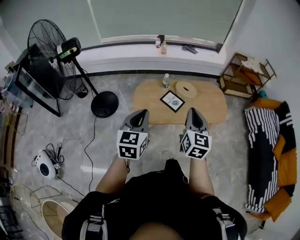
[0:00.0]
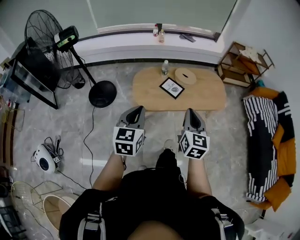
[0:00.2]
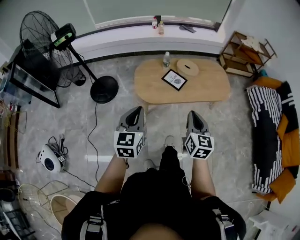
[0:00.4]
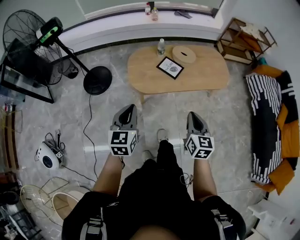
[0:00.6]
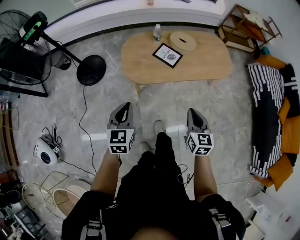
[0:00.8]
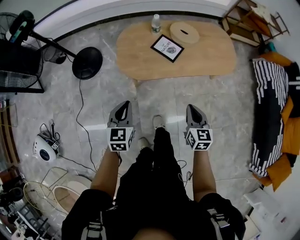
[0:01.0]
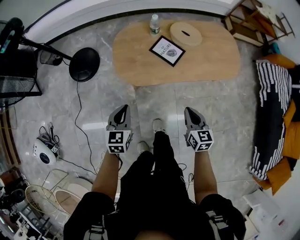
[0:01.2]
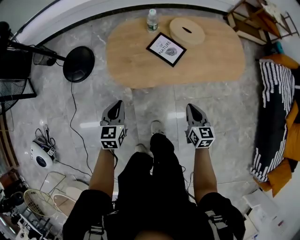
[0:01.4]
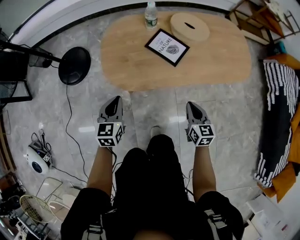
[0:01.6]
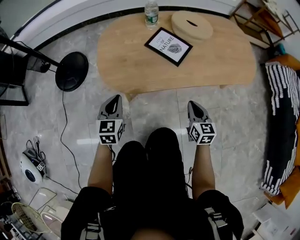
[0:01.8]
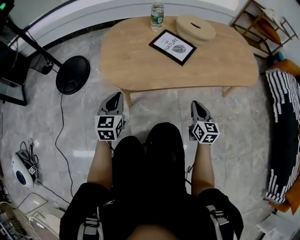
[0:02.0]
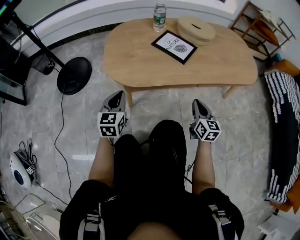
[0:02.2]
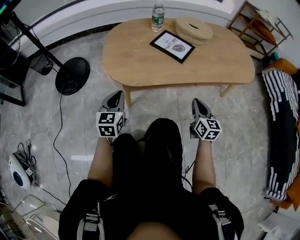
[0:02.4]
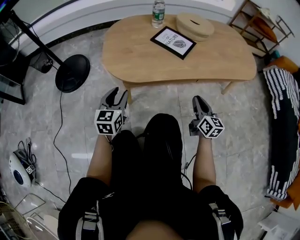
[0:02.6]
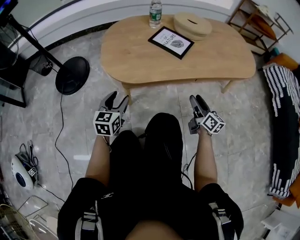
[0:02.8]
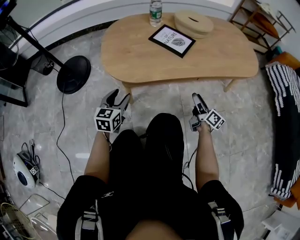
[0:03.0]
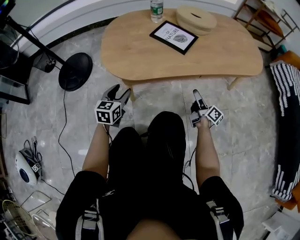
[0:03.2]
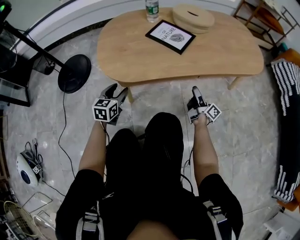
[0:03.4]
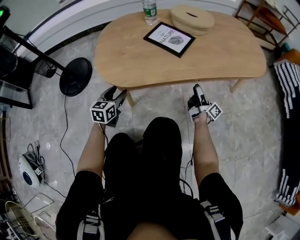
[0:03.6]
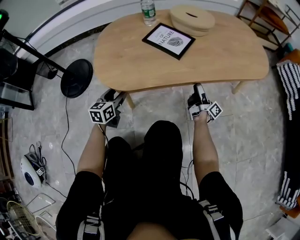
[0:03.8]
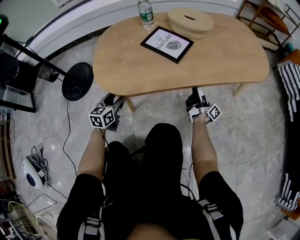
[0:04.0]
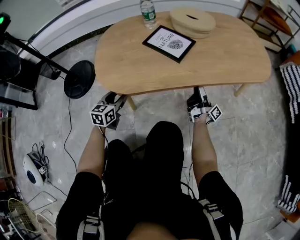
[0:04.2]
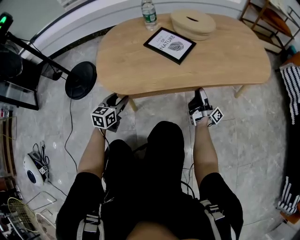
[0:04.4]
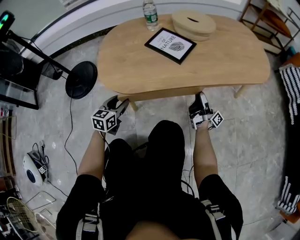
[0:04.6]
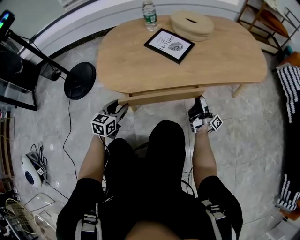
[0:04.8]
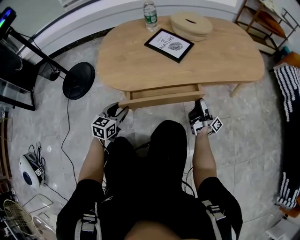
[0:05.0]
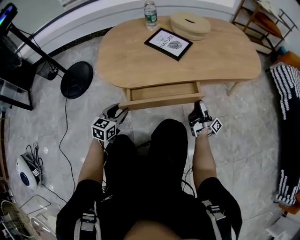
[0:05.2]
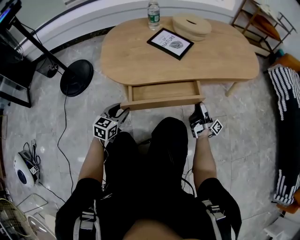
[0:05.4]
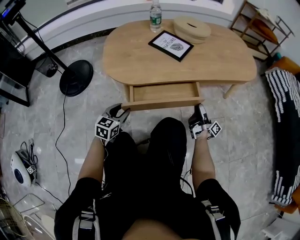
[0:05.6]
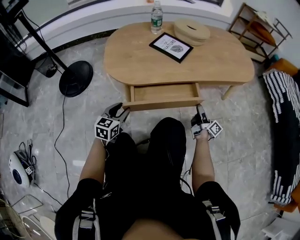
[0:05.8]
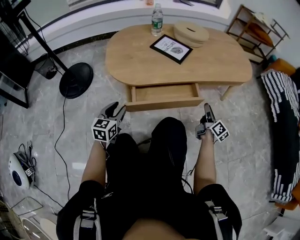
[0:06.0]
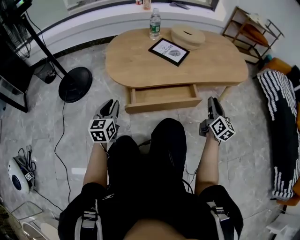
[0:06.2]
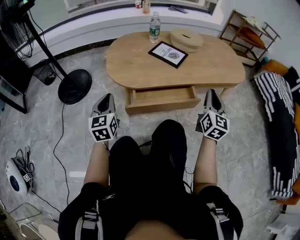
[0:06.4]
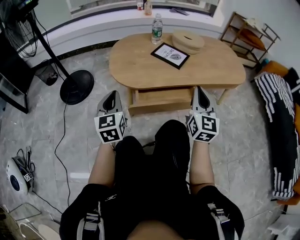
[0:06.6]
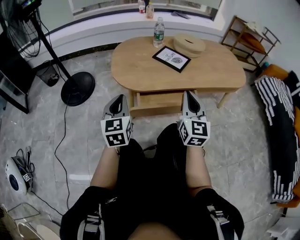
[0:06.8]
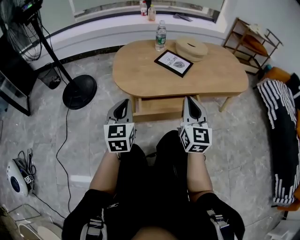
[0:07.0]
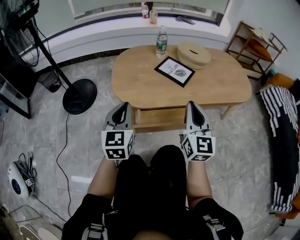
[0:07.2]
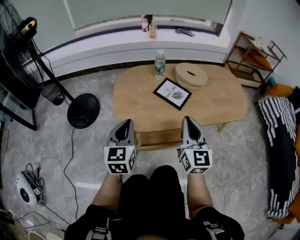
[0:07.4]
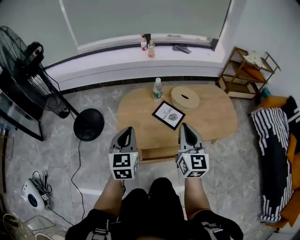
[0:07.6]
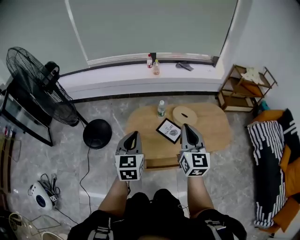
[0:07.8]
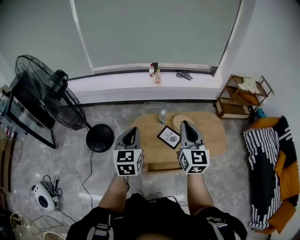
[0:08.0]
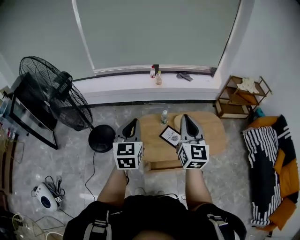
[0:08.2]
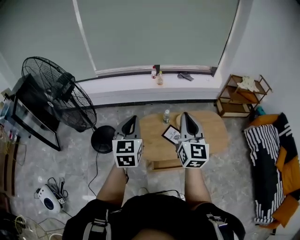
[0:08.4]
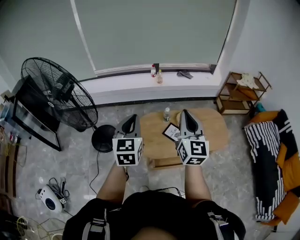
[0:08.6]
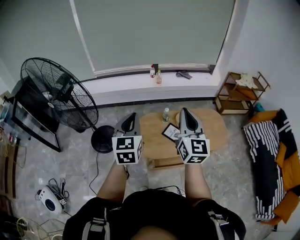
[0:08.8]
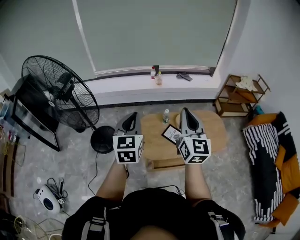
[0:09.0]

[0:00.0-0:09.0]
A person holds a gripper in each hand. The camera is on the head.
0.0 to 1.6 s: Both grippers travel together downward, some 50 cm. The right gripper changes its angle by roughly 30 degrees.
1.6 to 3.0 s: The two grippers go about 20 cm downward. The right gripper swivels roughly 50 degrees, and opens up. The left gripper opens its fingers.
3.0 to 4.4 s: The grippers both shift forward and downward by approximately 10 cm. The right gripper changes its angle by approximately 50 degrees.
4.4 to 6.0 s: The grippers both shift backward and upward by some 15 cm. The right gripper rolls counterclockwise, seen from behind, by about 40 degrees.
6.0 to 7.6 s: The left gripper moves upward, approximately 40 cm, and closes its fingers, while the right gripper is displaced upward and to the left by some 50 cm, twists roughly 50 degrees counterclockwise, seen from behind, and closes.
7.6 to 9.0 s: Both grippers move upward, about 40 cm.

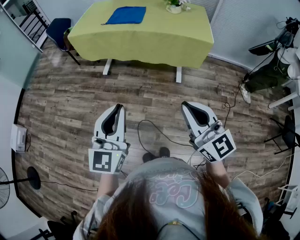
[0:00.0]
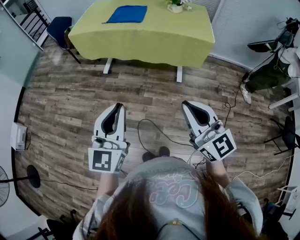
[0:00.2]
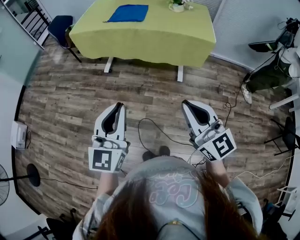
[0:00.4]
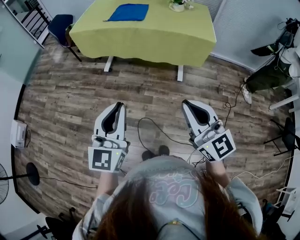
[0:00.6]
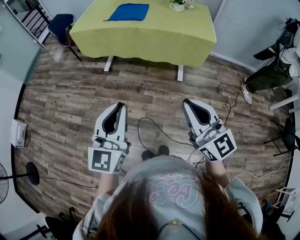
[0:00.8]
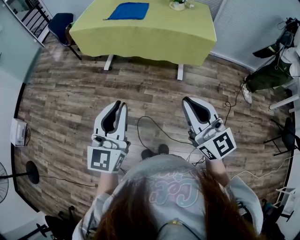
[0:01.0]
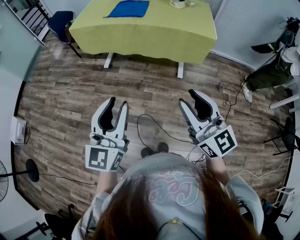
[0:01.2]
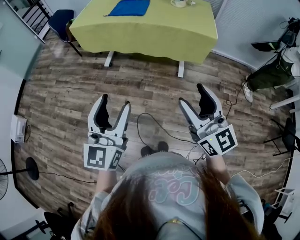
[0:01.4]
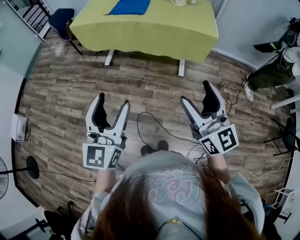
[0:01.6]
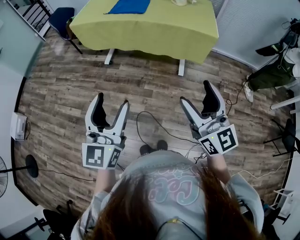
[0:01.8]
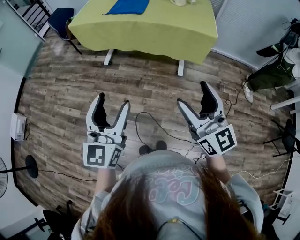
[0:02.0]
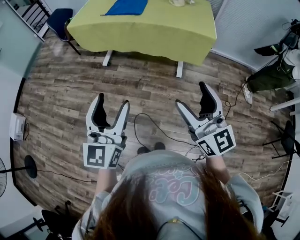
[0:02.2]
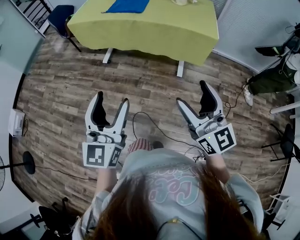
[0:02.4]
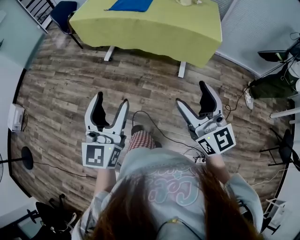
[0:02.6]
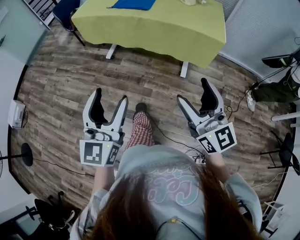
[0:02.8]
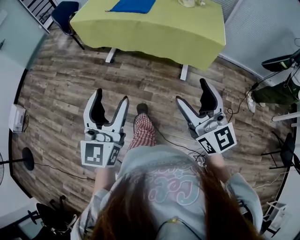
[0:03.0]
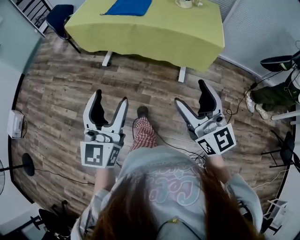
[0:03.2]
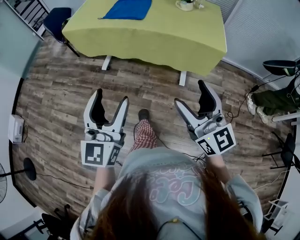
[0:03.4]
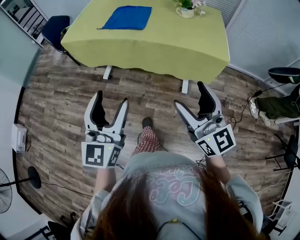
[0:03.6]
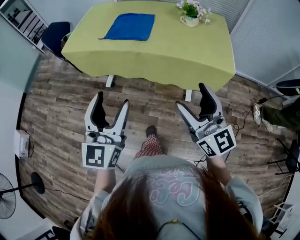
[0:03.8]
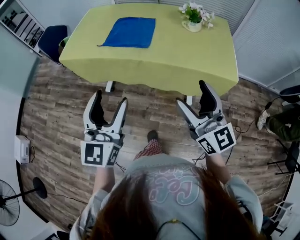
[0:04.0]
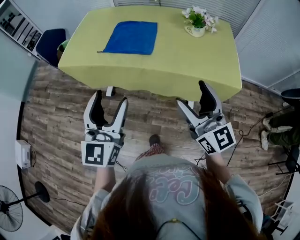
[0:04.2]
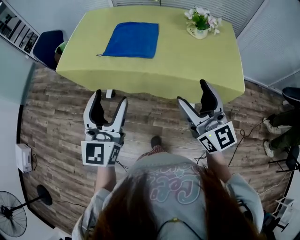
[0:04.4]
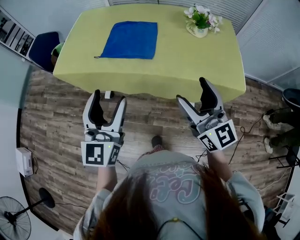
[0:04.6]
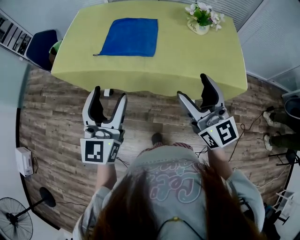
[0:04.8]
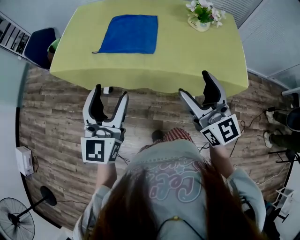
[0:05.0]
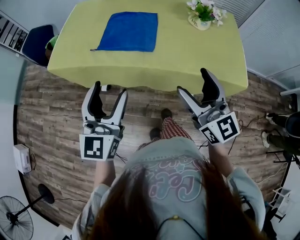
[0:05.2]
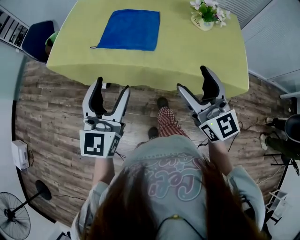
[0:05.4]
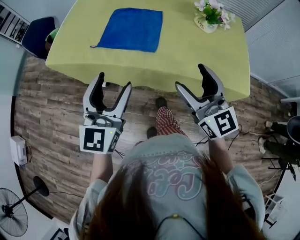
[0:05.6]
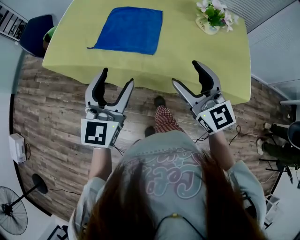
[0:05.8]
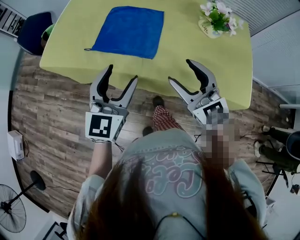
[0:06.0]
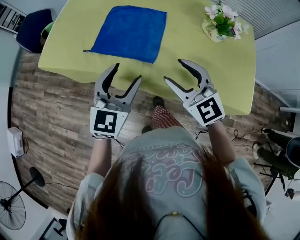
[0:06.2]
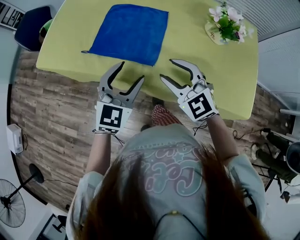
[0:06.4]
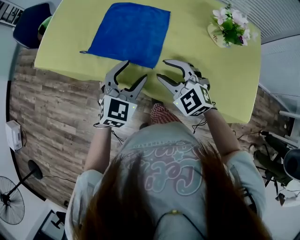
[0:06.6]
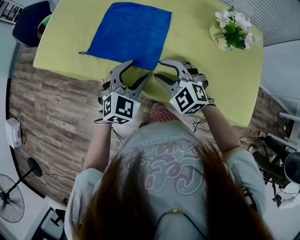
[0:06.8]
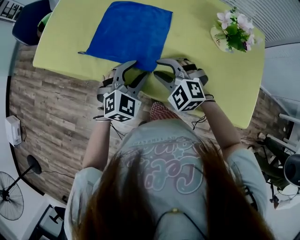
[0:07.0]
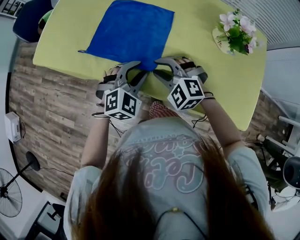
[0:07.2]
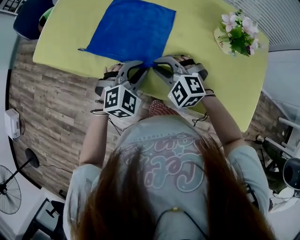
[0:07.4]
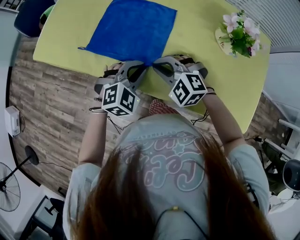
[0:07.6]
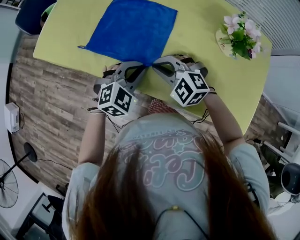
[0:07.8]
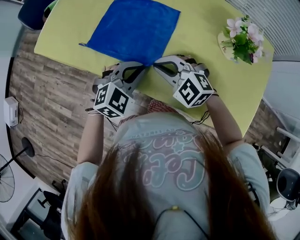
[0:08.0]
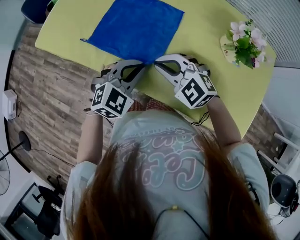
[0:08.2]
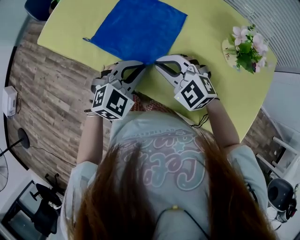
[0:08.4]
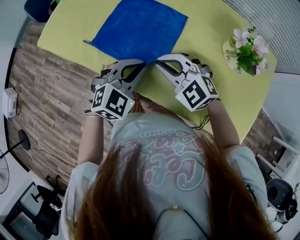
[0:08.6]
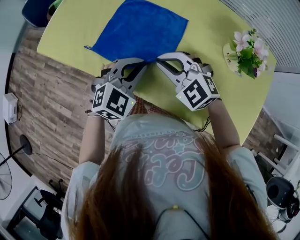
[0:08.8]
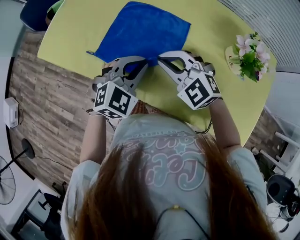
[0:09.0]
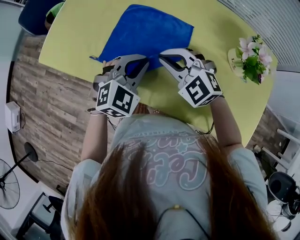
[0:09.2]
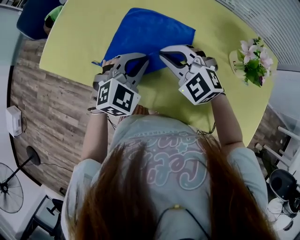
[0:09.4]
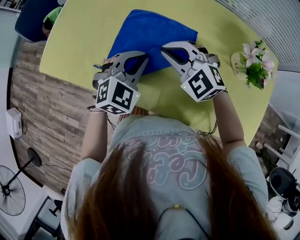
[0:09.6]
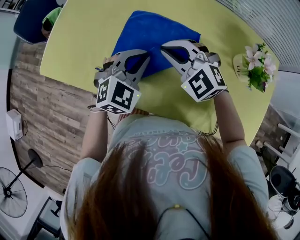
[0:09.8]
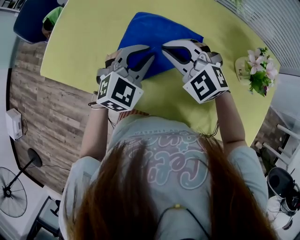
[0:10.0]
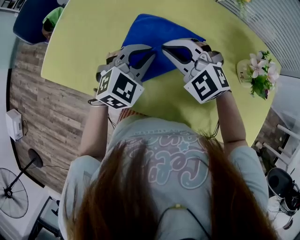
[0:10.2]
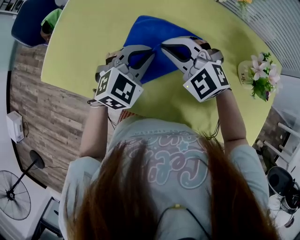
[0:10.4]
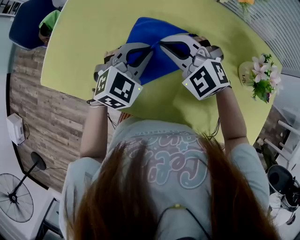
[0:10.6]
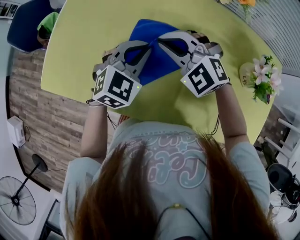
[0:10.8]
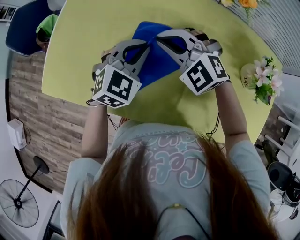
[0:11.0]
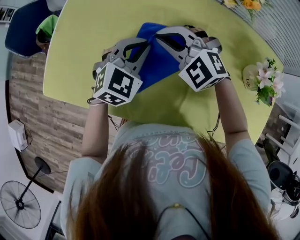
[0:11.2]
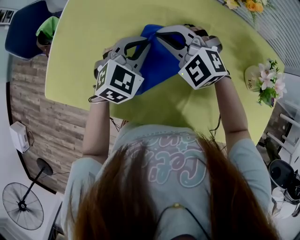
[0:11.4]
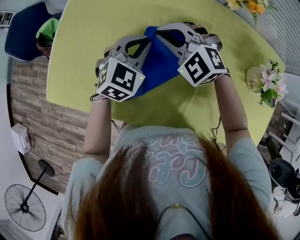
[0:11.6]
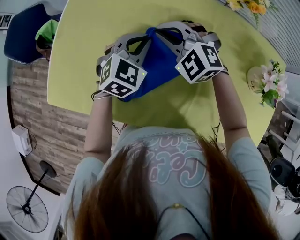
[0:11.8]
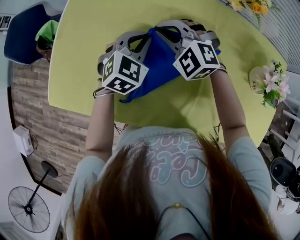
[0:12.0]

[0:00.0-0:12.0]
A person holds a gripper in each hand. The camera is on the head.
0.0 to 1.6 s: The left gripper opens up. Meanwhile the right gripper opens up.
1.6 to 3.0 s: The two grippers go approximately 10 cm forward.
3.0 to 4.4 s: The two grippers go some 40 cm forward.
4.4 to 6.0 s: The grippers both shift forward and downward by some 20 cm. The right gripper rotates roughly 30 degrees.
6.0 to 7.6 s: The right gripper goes about 20 cm downward and forward, points its fingers roughly 30 degrees further downward, and closes up; the left gripper moves downward, forward and to the right, roughly 20 cm, tilts its fingers roughly 30 degrees downward, and closes.
7.6 to 9.0 s: Both grippers move forward and upward, about 10 cm.
9.0 to 10.4 s: Both grippers travel together forward, some 15 cm.
10.4 to 12.0 s: Both grippers move forward, about 15 cm.

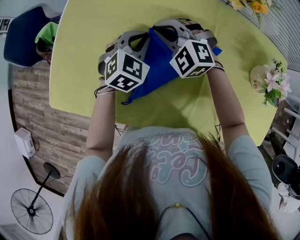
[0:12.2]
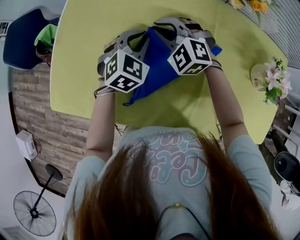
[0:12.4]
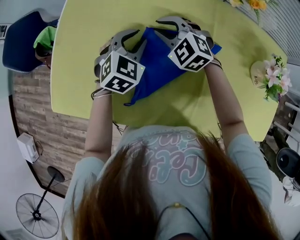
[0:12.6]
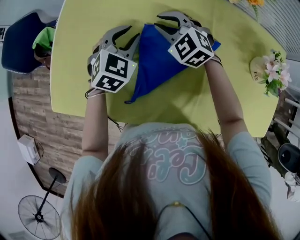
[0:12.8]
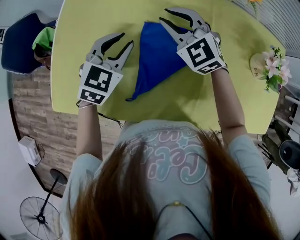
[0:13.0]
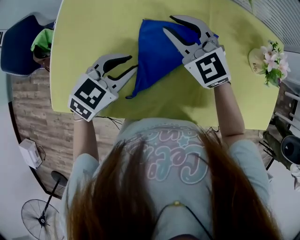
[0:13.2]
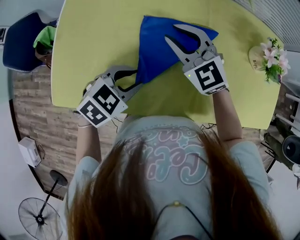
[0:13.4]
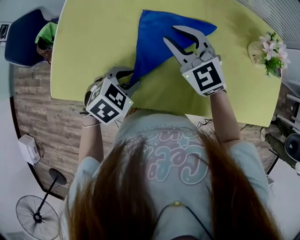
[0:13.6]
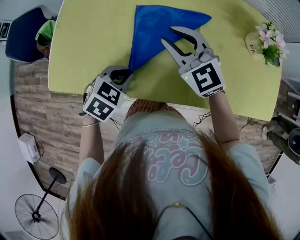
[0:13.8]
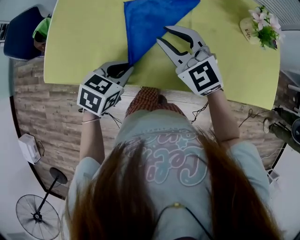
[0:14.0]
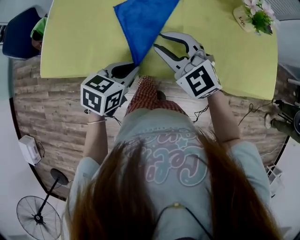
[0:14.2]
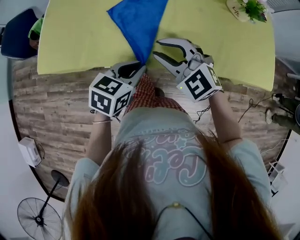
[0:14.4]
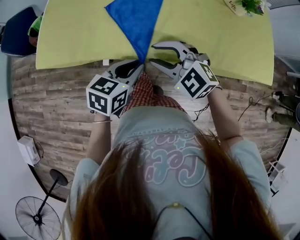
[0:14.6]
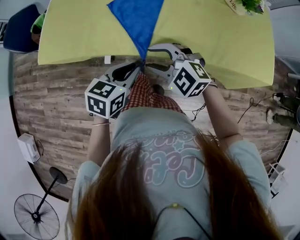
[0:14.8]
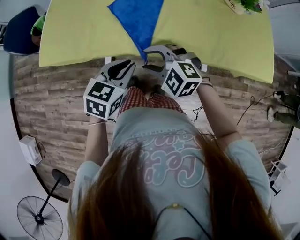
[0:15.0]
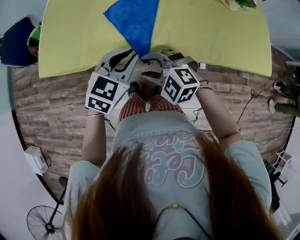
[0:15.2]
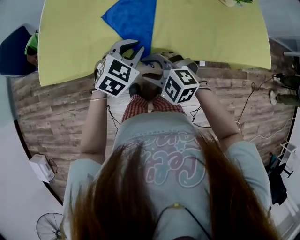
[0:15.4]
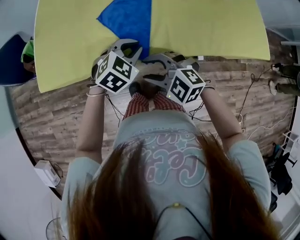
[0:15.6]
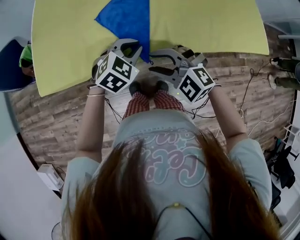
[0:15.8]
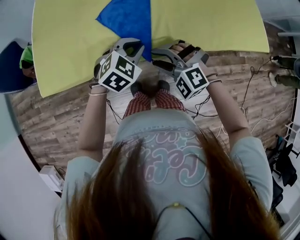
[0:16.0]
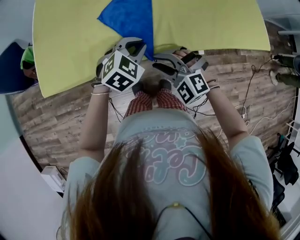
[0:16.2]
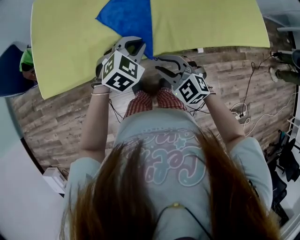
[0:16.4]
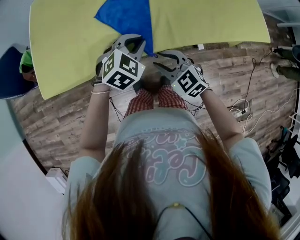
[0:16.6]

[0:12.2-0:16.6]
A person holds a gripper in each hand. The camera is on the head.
12.2 to 13.6 s: The right gripper shifts by roughly 15 cm, and swivels some 30 degrees, while the left gripper shifts by roughly 20 cm, and changes its angle by some 30 degrees.
13.6 to 15.2 s: The left gripper goes about 15 cm backward and to the right, and changes its angle by approximately 30 degrees; the right gripper moves backward, some 30 cm, and changes its angle by approximately 30 degrees.
15.2 to 16.6 s: The right gripper shifts by approximately 5 cm, and turns by roughly 40 degrees. The left gripper goes roughly 5 cm downward, and turns by roughly 30 degrees.
